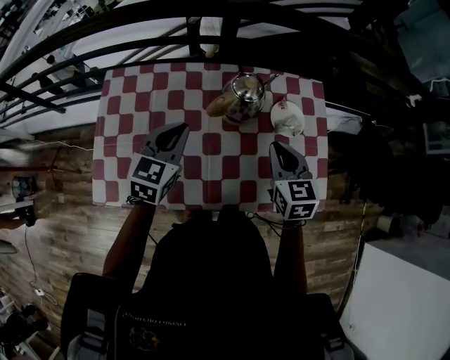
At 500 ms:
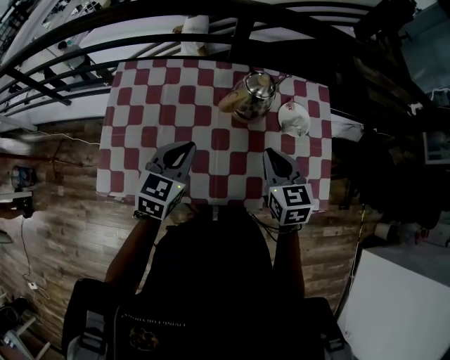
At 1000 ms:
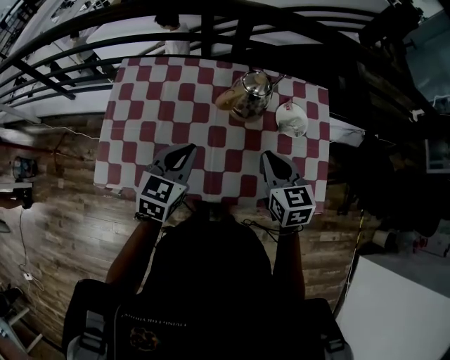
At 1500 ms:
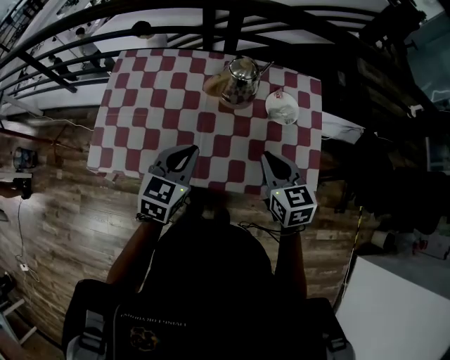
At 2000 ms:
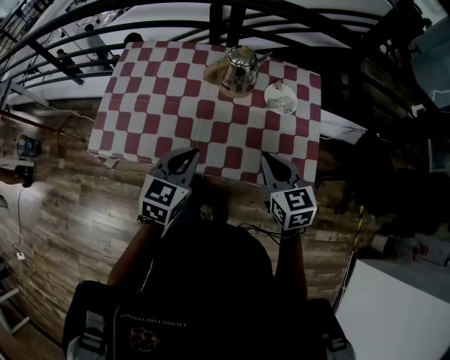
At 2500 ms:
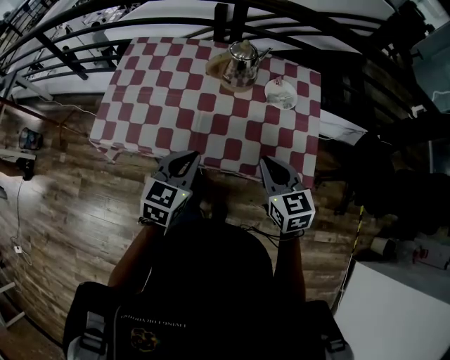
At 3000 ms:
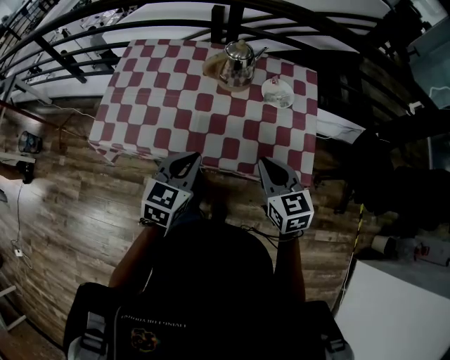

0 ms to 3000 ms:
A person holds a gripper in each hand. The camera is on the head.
0 ms to 1500 ms: The right gripper goes some 10 cm backward. Meanwhile the left gripper moves backward and to the right, about 15 cm.
1500 ms to 3000 ms: The two grippers go some 10 cm backward.

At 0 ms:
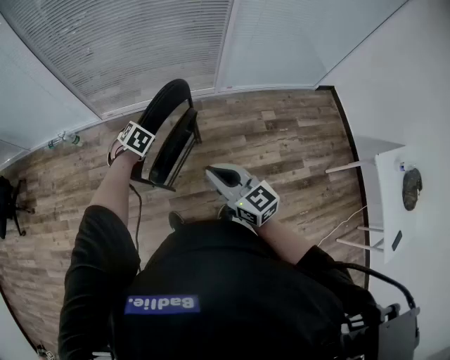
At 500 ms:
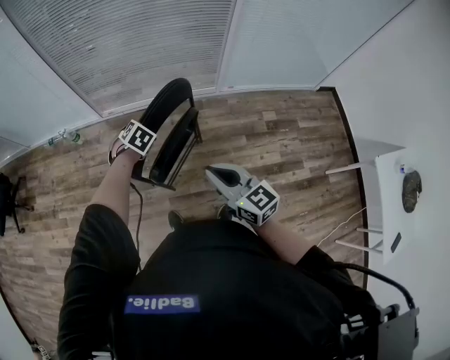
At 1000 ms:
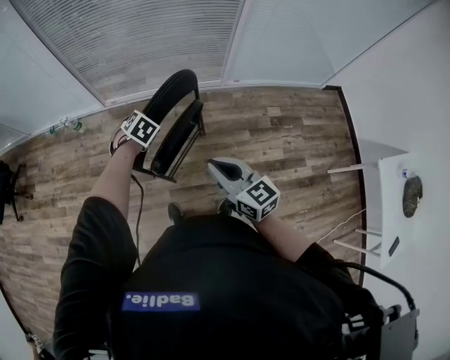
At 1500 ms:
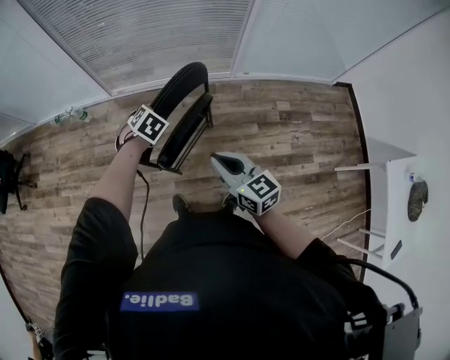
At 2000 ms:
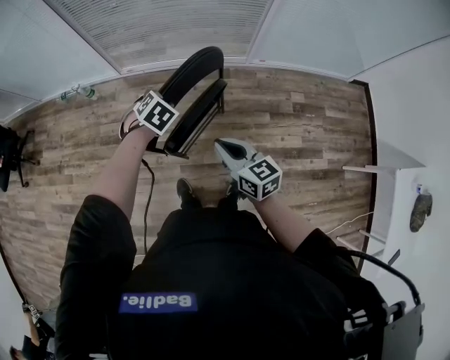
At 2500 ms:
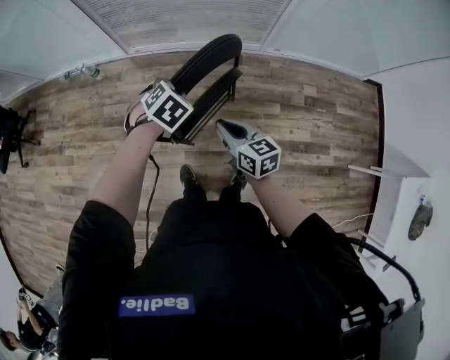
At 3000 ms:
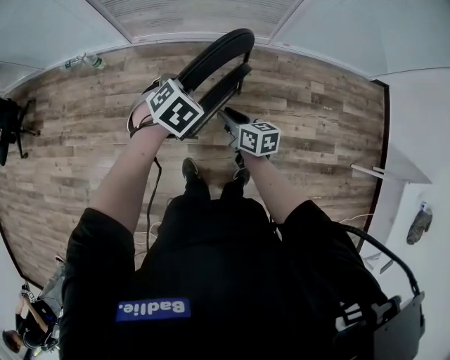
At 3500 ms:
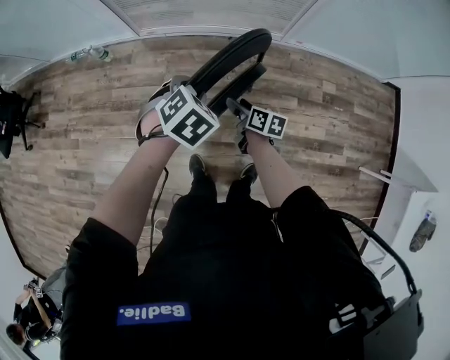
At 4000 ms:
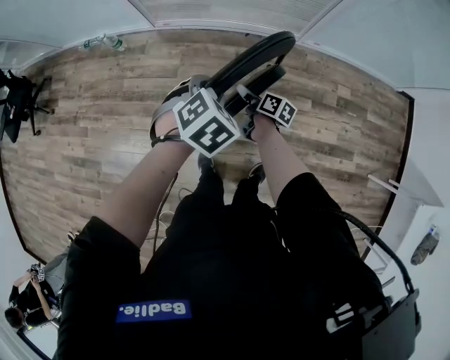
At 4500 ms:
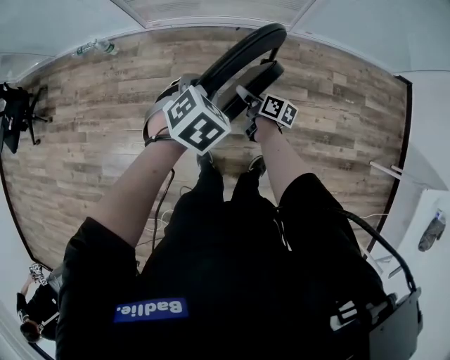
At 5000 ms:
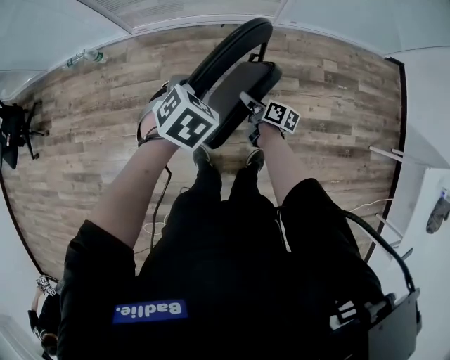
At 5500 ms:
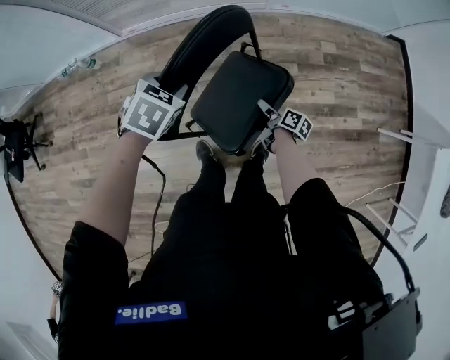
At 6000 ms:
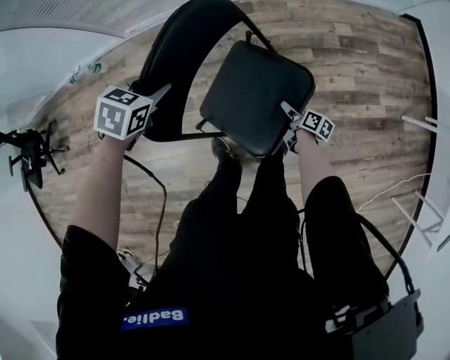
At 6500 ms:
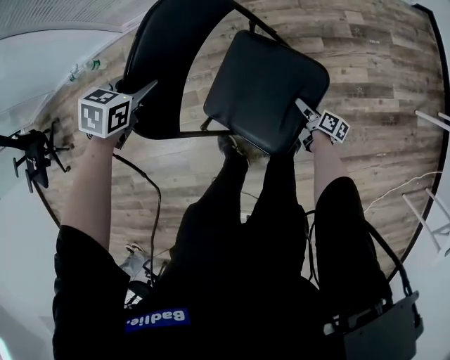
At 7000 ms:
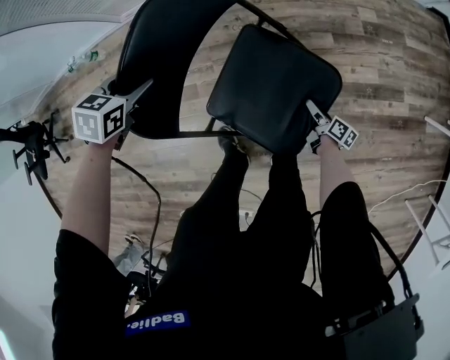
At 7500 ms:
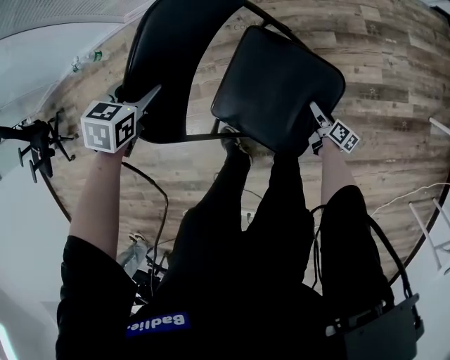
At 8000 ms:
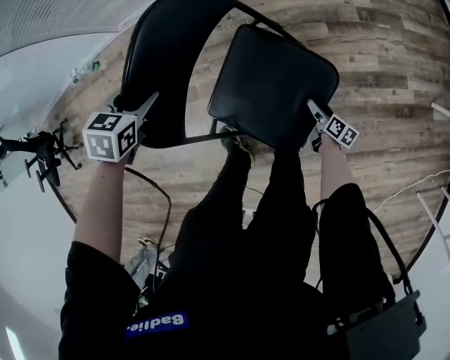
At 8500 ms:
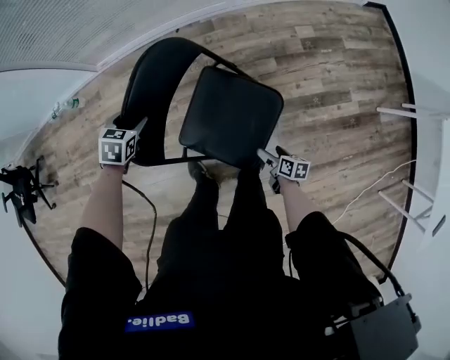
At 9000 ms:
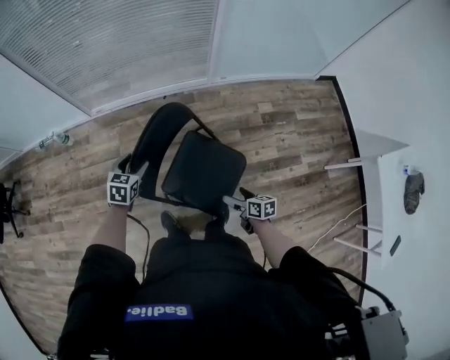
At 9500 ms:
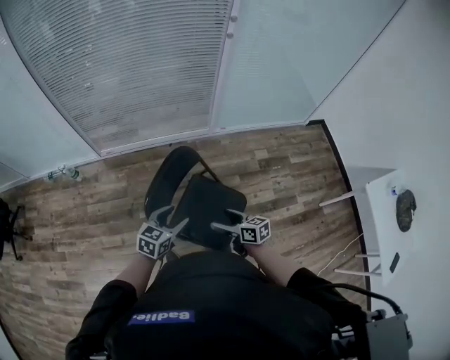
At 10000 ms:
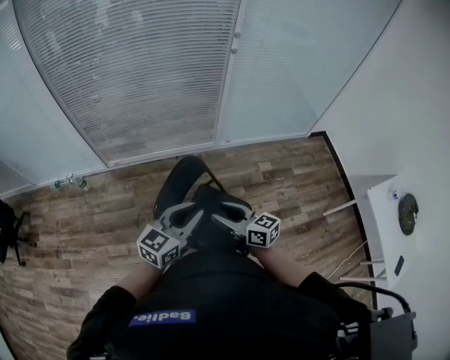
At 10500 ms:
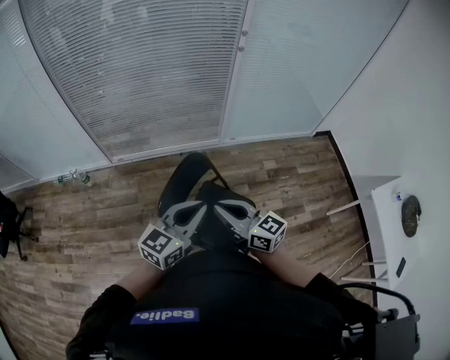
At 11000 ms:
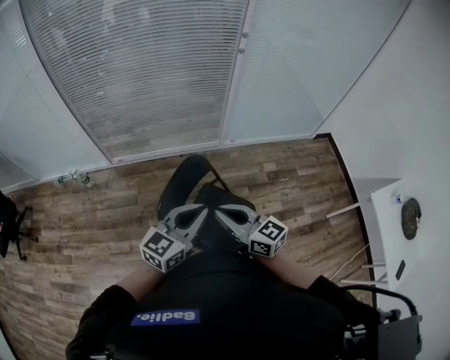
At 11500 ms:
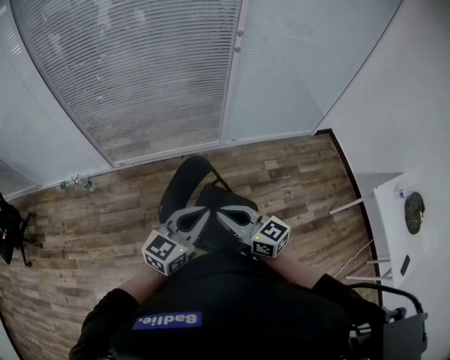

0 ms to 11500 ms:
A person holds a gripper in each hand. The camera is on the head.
0 ms to 2000 ms: The right gripper goes roughly 10 cm downward and forward.
2000 ms to 4000 ms: The right gripper moves downward and forward, approximately 35 cm, rotates around the line of its fingers by some 50 degrees, clockwise from behind, and opens its fingers.
4000 ms to 6000 ms: The right gripper goes roughly 40 cm to the right, backward and downward. The left gripper heads downward, covering some 10 cm.
6000 ms to 7500 ms: The left gripper goes about 10 cm downward, and opens its fingers; the right gripper shifts roughly 15 cm downward and to the right.
7500 ms to 9500 ms: The left gripper is displaced upward, backward and to the right by roughly 35 cm, and tips its fingers upward by roughly 30 degrees, while the right gripper shifts some 50 cm upward, and swivels roughly 50 degrees.
9500 ms to 11500 ms: Both grippers move upward, some 20 cm. The right gripper changes its angle by some 30 degrees, and closes up. The left gripper turns by about 20 degrees, and closes up.

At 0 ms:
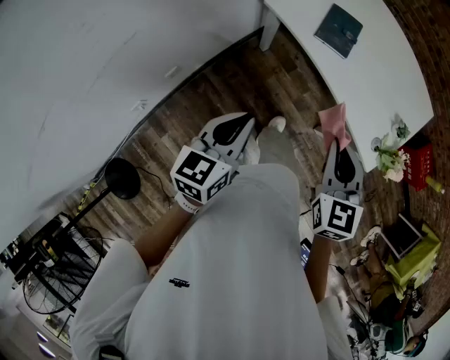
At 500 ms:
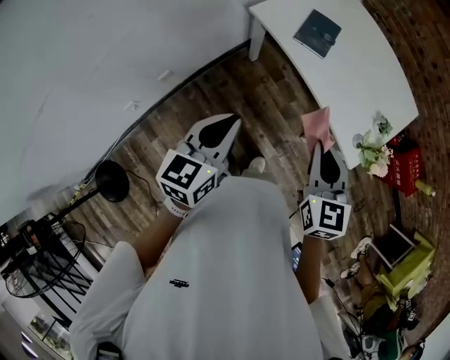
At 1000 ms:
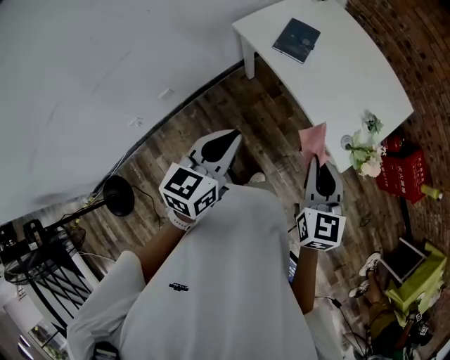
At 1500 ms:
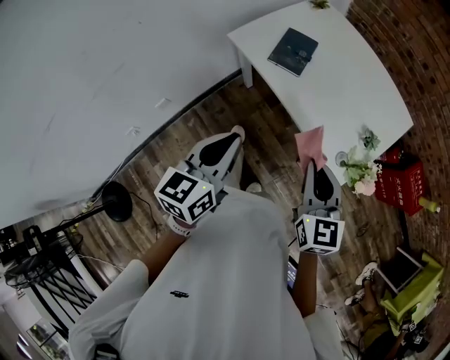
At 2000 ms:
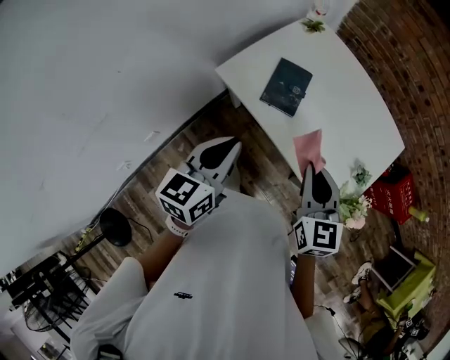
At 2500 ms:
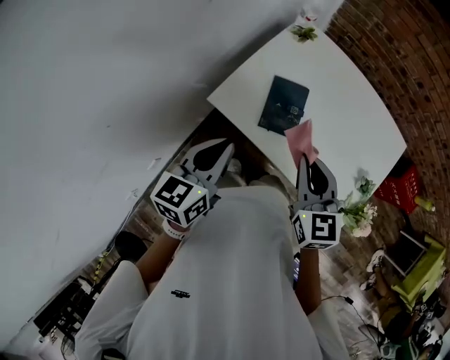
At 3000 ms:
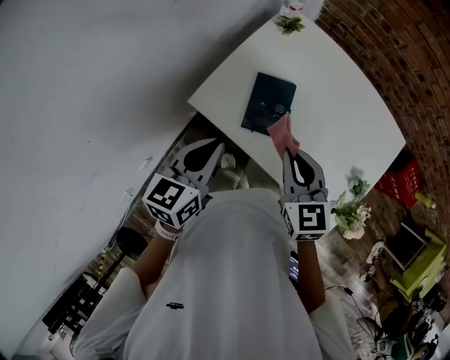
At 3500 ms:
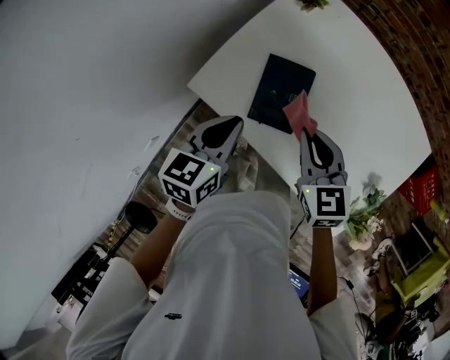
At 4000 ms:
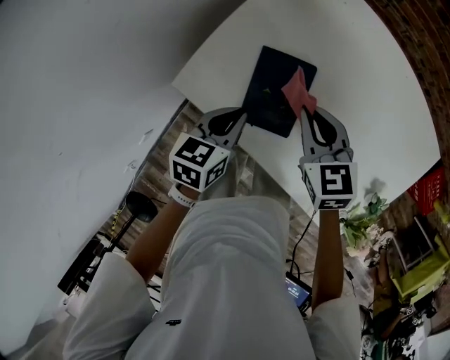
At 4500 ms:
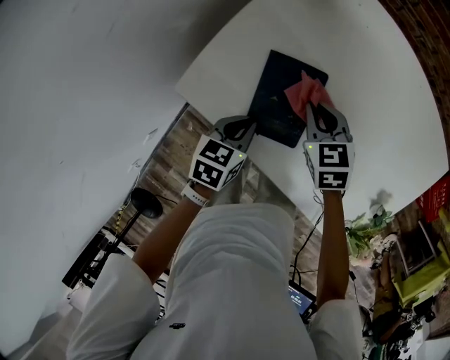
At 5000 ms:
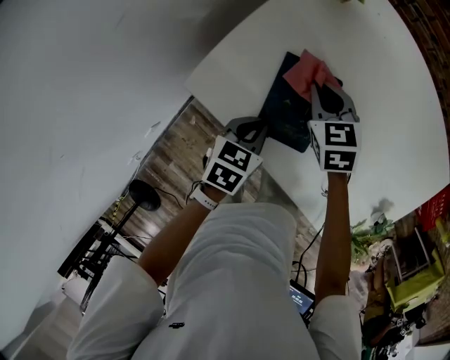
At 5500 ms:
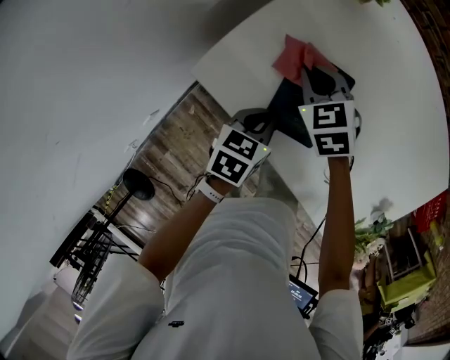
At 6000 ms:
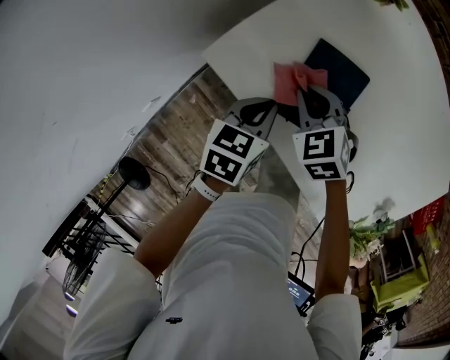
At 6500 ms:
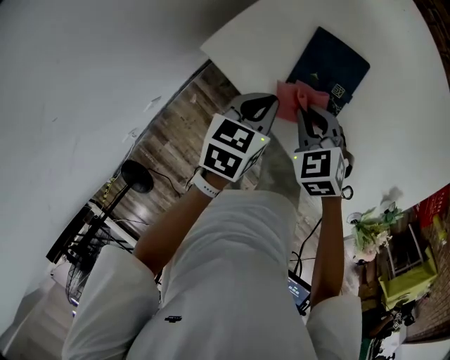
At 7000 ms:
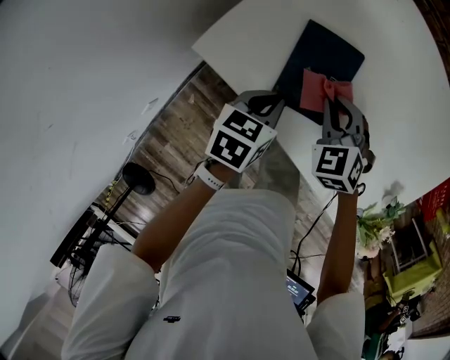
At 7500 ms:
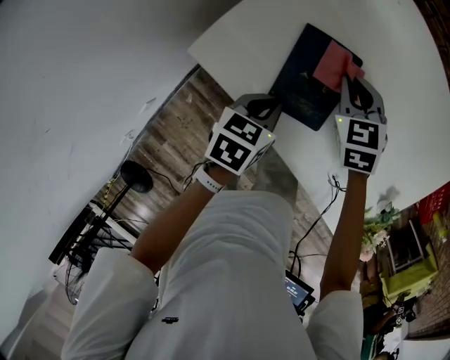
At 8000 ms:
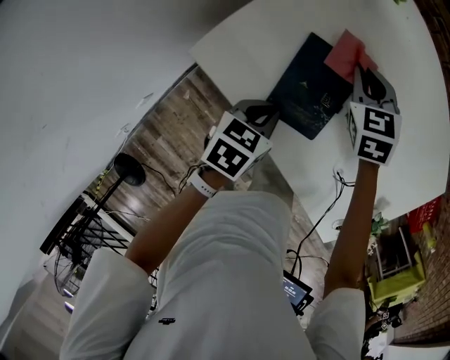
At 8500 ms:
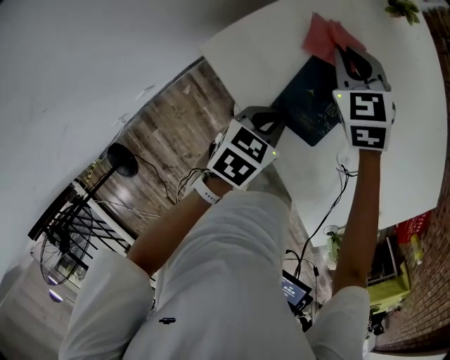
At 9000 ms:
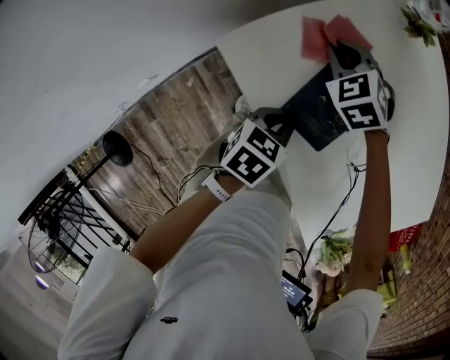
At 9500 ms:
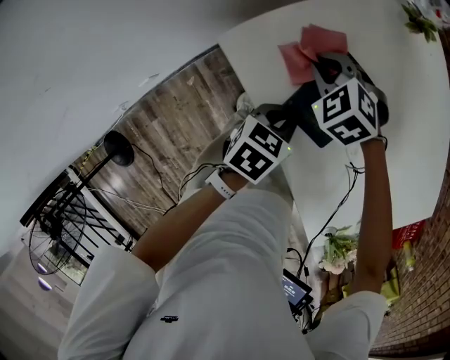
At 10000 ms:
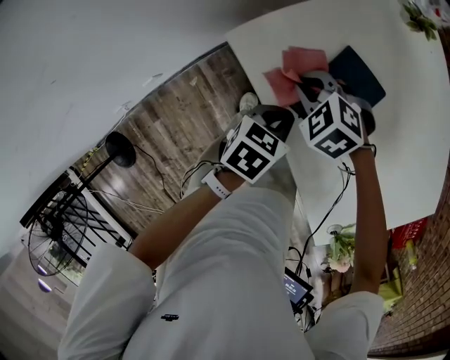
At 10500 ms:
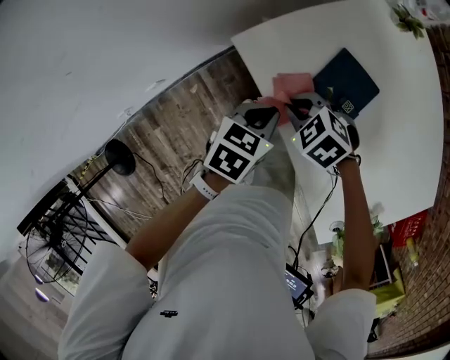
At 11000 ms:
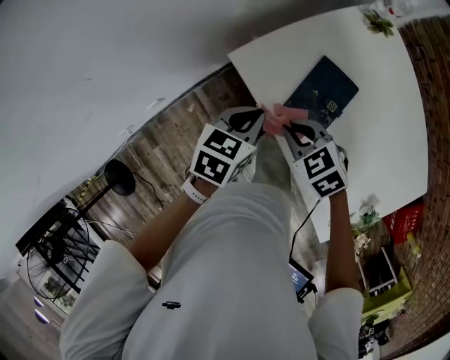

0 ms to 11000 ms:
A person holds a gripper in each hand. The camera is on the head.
0 ms to 2000 ms: The two grippers go approximately 20 cm forward and to the right.
2000 ms to 3500 ms: Both grippers move forward and downward, some 25 cm.
3500 ms to 5500 ms: The right gripper is displaced downward, forward and to the left by some 20 cm, and rotates approximately 20 degrees, while the left gripper travels downward by roughly 15 cm, and swivels roughly 20 degrees.
5500 ms to 7500 ms: The right gripper travels to the right by approximately 10 cm, and moves about 15 cm backward and comes back.
7500 ms to 9000 ms: The right gripper is displaced to the left and forward by approximately 15 cm, and swivels approximately 40 degrees.
9000 ms to 11000 ms: The left gripper shifts roughly 10 cm upward. Meanwhile the right gripper changes place by about 25 cm, and turns by some 20 degrees.

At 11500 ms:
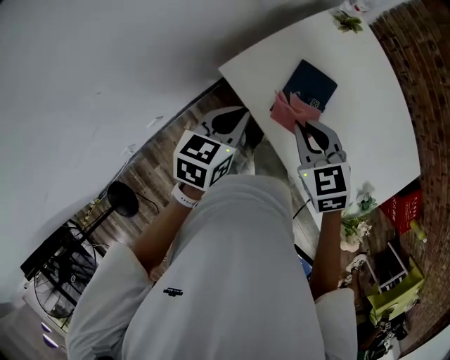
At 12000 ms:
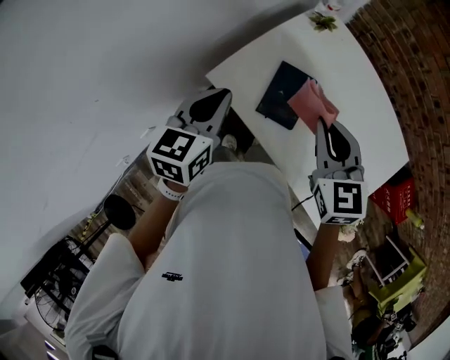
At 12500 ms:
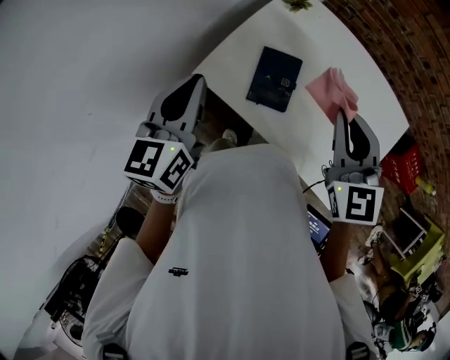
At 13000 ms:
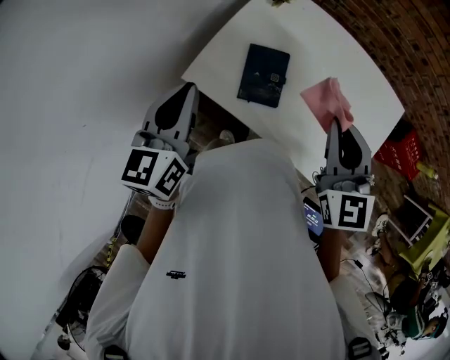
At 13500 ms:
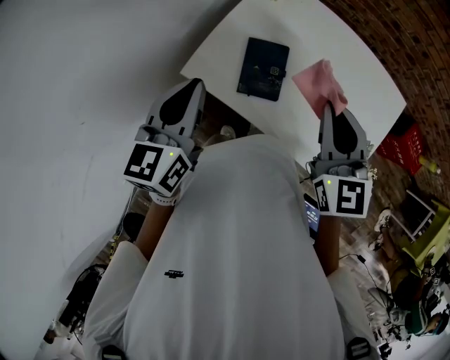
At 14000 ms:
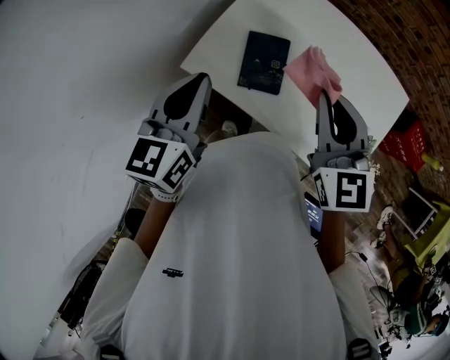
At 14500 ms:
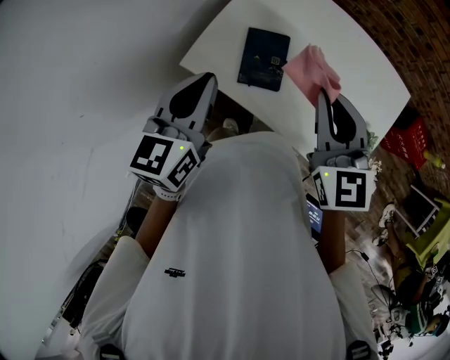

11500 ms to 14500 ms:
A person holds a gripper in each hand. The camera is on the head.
11500 ms to 13000 ms: The left gripper goes approximately 15 cm upward, and rotates about 20 degrees. The right gripper moves upward and to the right, about 20 cm, and rotates roughly 40 degrees.
13000 ms to 14500 ms: The left gripper heads to the right, covering some 5 cm.
